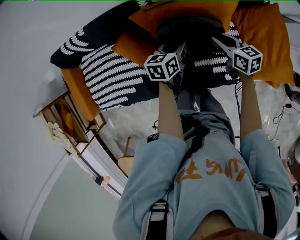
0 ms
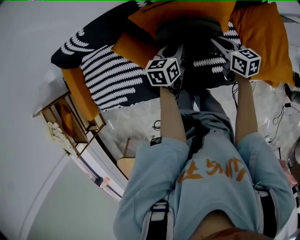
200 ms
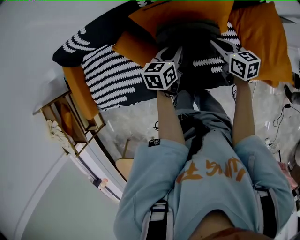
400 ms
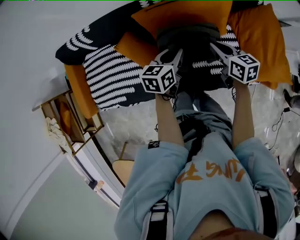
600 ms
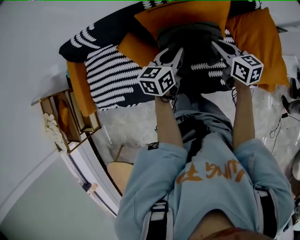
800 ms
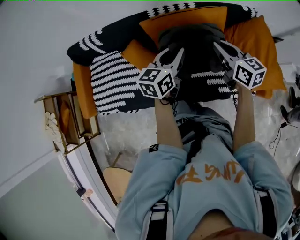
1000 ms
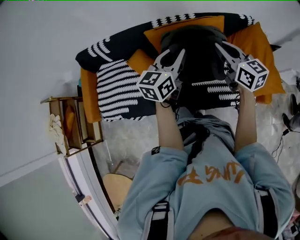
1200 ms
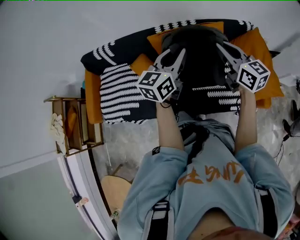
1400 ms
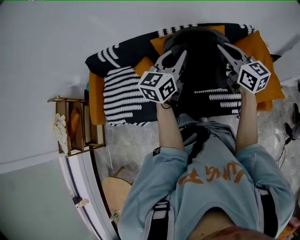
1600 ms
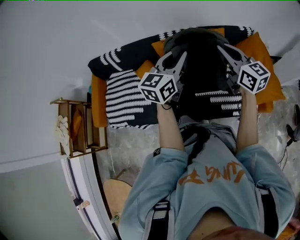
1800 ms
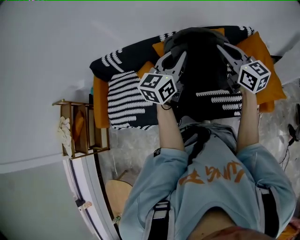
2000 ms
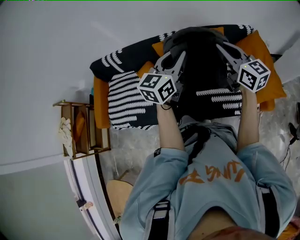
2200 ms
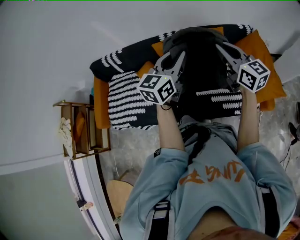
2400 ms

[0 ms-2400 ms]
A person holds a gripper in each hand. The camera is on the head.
0 ms to 1200 ms: Both grippers move upward and backward, about 30 cm. The left gripper rotates about 30 degrees, while the right gripper swivels roughly 30 degrees.
1200 ms to 2400 ms: Both grippers move upward, approximately 5 cm.

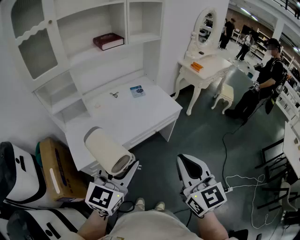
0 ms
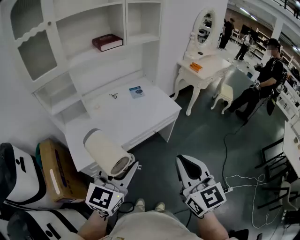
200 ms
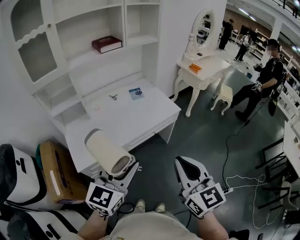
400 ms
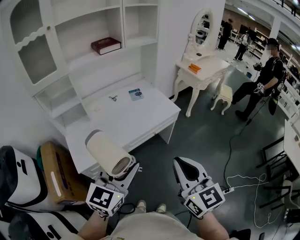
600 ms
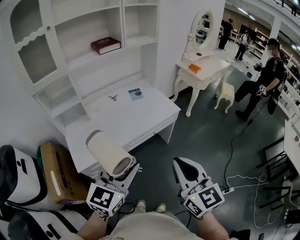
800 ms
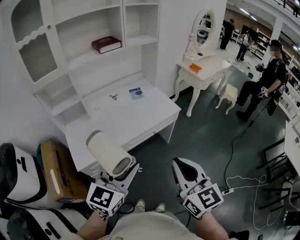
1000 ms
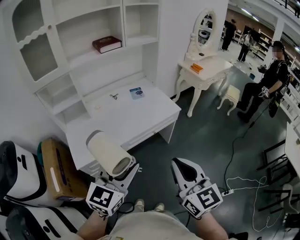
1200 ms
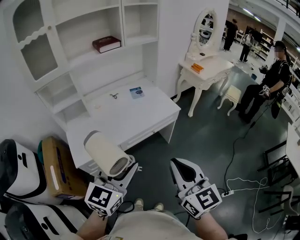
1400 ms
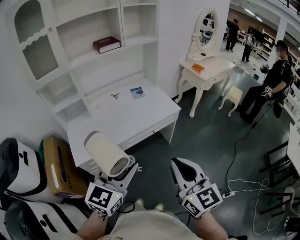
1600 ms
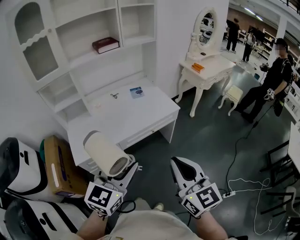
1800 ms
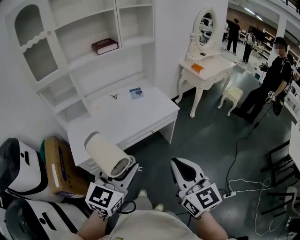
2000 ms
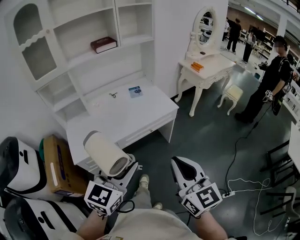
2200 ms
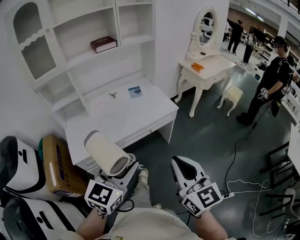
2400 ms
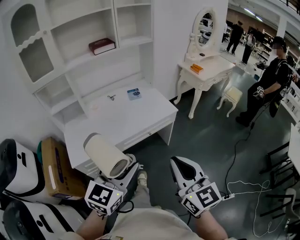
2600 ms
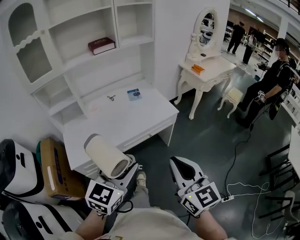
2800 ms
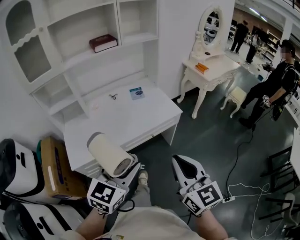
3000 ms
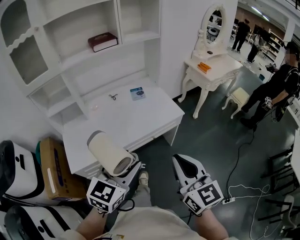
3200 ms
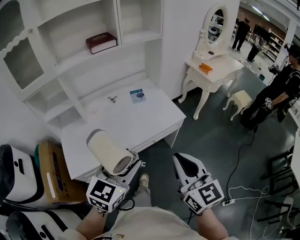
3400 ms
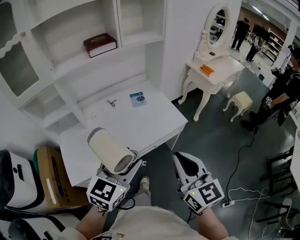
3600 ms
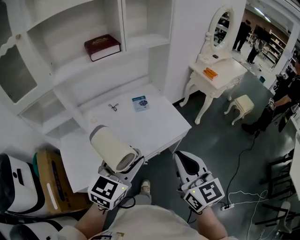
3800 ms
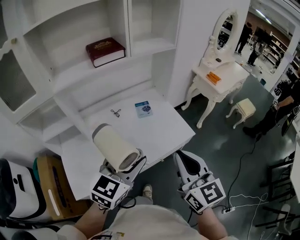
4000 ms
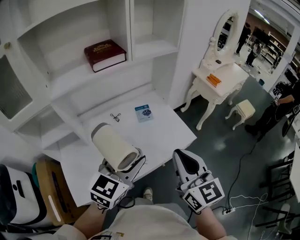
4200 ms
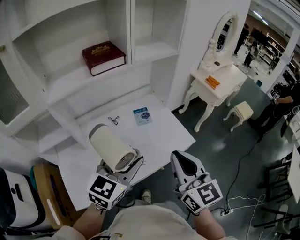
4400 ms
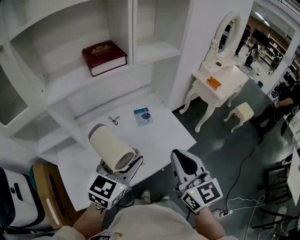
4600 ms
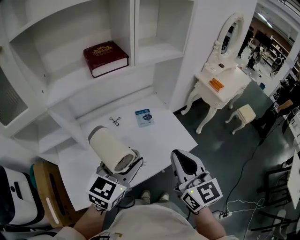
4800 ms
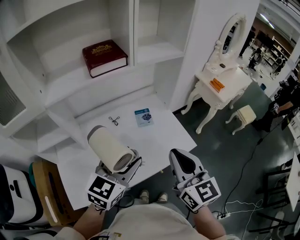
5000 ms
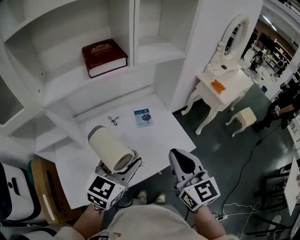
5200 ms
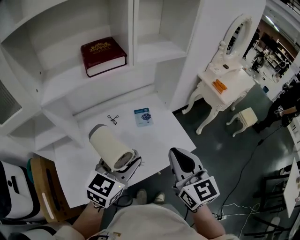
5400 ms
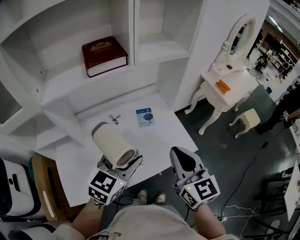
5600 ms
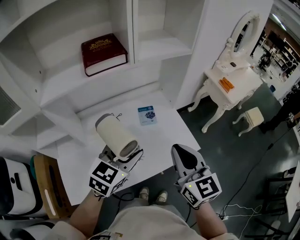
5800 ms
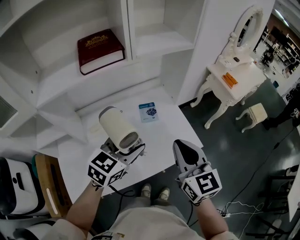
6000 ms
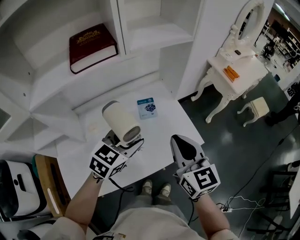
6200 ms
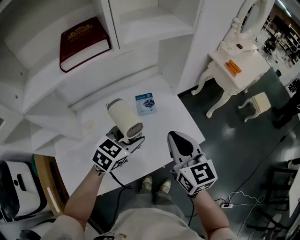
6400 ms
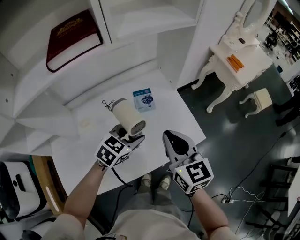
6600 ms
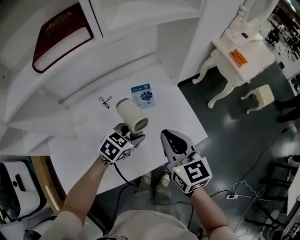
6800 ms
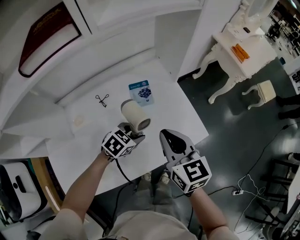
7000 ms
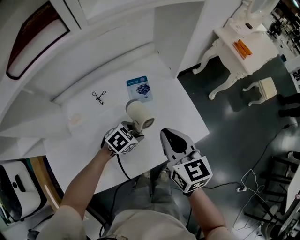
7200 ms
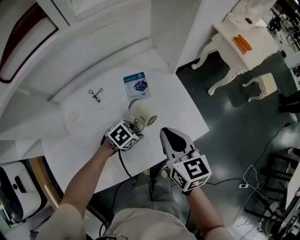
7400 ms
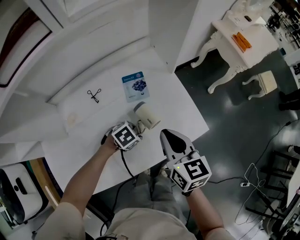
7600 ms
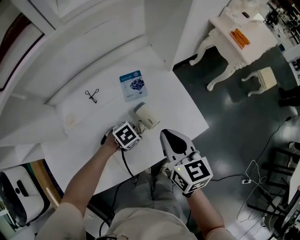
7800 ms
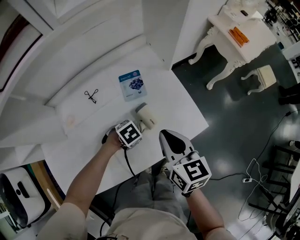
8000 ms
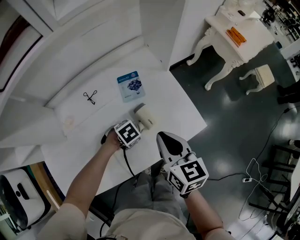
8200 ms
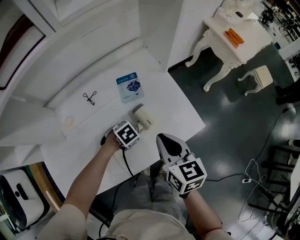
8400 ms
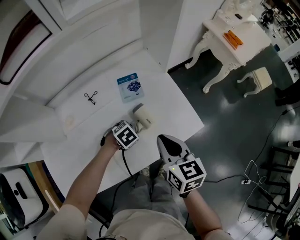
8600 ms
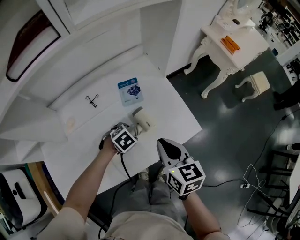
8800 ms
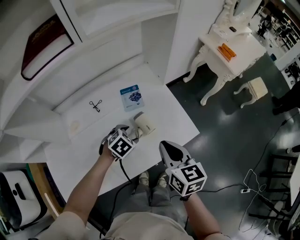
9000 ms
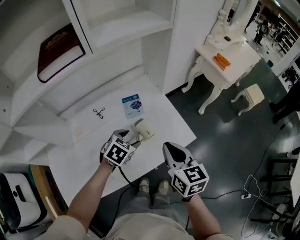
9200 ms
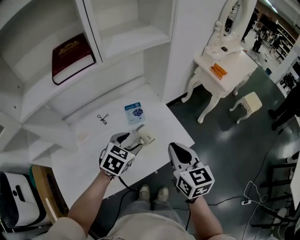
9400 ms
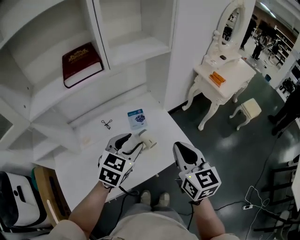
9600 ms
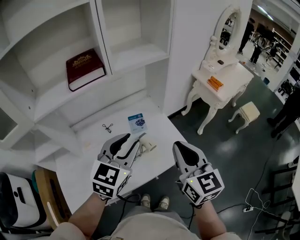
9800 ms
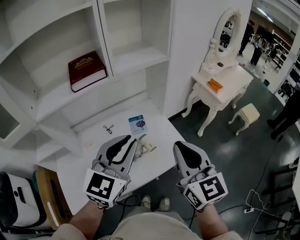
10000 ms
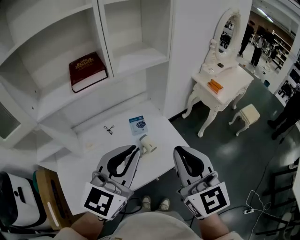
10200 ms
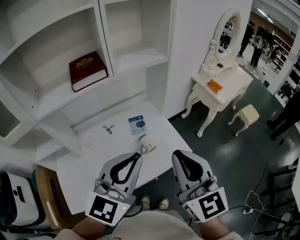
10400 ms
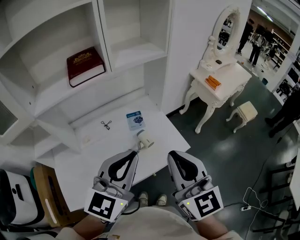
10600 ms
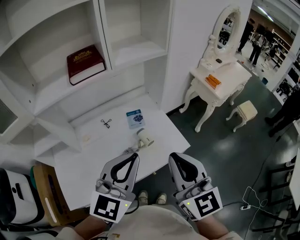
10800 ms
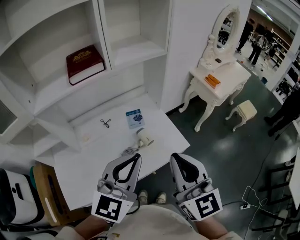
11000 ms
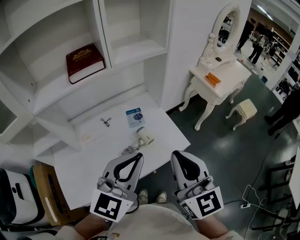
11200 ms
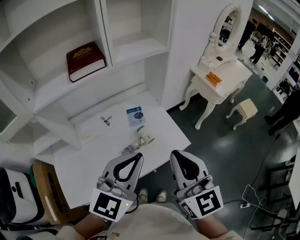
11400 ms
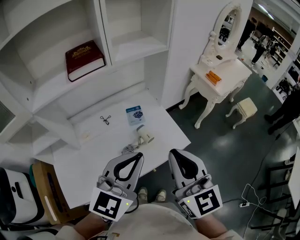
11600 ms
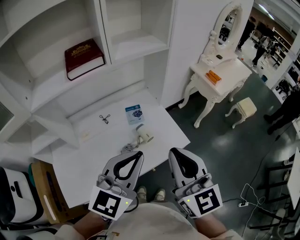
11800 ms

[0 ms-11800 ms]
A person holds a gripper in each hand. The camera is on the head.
0 ms to 1400 ms: The left gripper ends up some 5 cm from where it was.
1400 ms to 3000 ms: Both grippers move forward, approximately 5 cm.
3000 ms to 4400 ms: The right gripper is displaced forward and to the left by roughly 35 cm, while the left gripper shifts approximately 30 cm forward.
4400 ms to 6000 ms: The right gripper travels forward by some 15 cm, while the left gripper goes approximately 15 cm forward and downward.
6000 ms to 7400 ms: The left gripper travels downward by approximately 35 cm, and tips its fingers downward by approximately 40 degrees; the right gripper moves downward and forward, about 20 cm, and rotates roughly 20 degrees.
7400 ms to 8800 ms: The right gripper ends up roughly 5 cm from where it was.
8800 ms to 10400 ms: The right gripper shifts roughly 35 cm upward and backward, and changes its angle by roughly 40 degrees; the left gripper is displaced upward by approximately 50 cm, tilts its fingers some 70 degrees upward, and closes.
10400 ms to 11800 ms: The grippers move only a little.

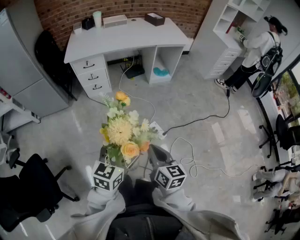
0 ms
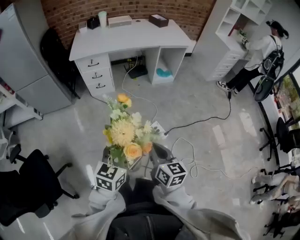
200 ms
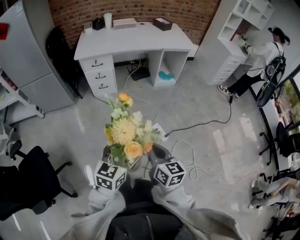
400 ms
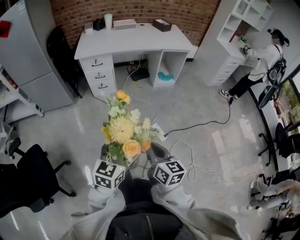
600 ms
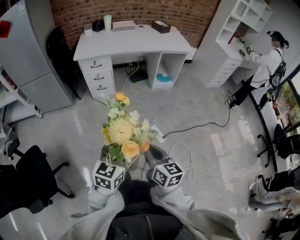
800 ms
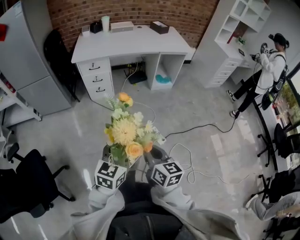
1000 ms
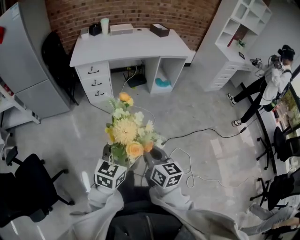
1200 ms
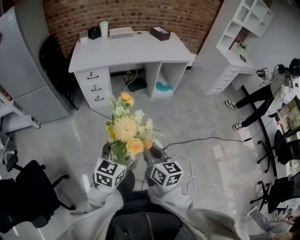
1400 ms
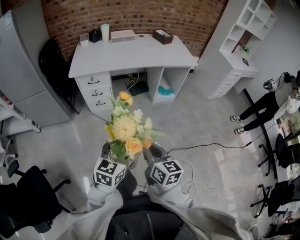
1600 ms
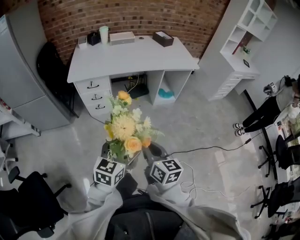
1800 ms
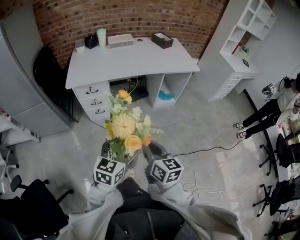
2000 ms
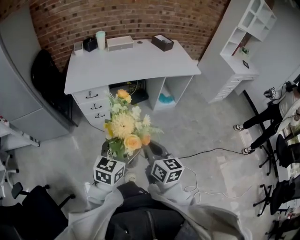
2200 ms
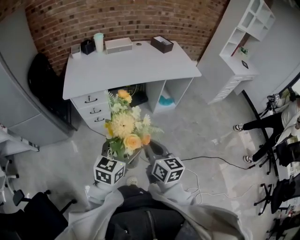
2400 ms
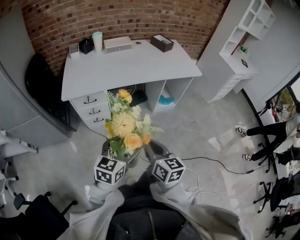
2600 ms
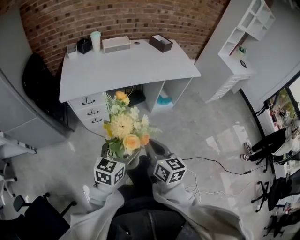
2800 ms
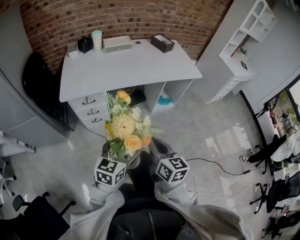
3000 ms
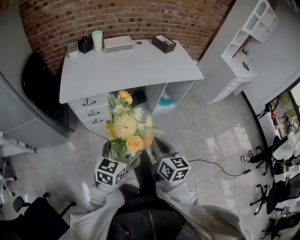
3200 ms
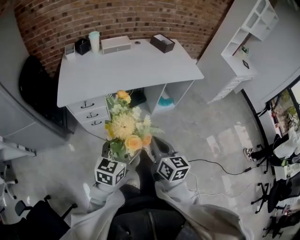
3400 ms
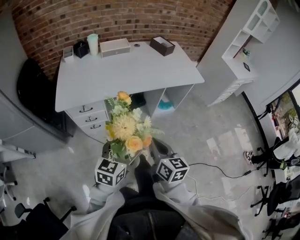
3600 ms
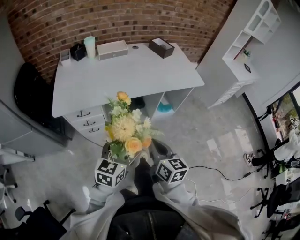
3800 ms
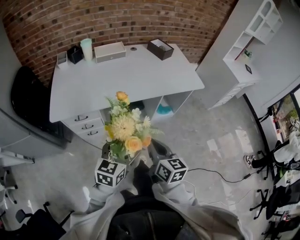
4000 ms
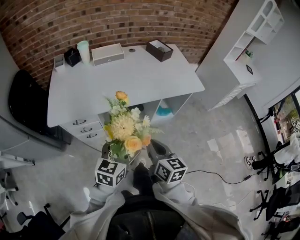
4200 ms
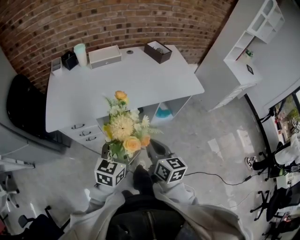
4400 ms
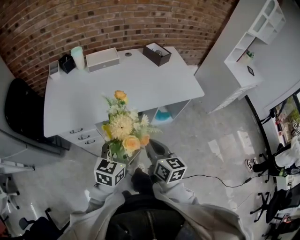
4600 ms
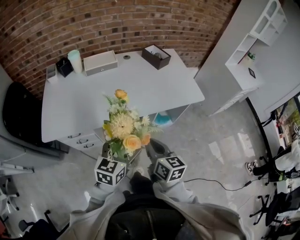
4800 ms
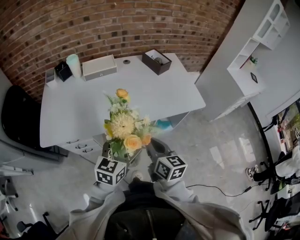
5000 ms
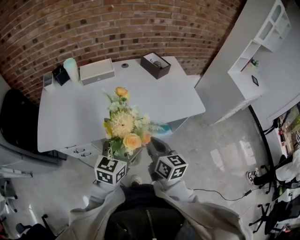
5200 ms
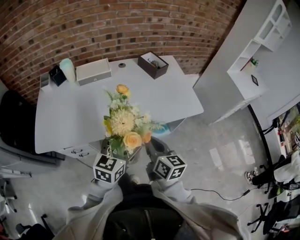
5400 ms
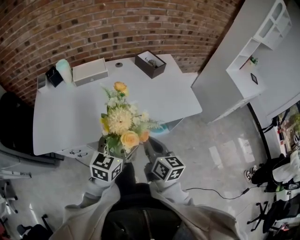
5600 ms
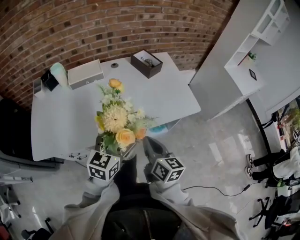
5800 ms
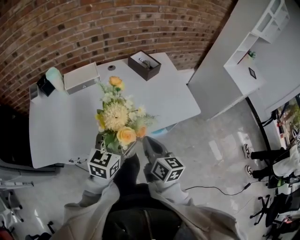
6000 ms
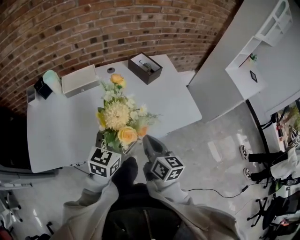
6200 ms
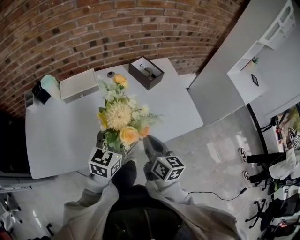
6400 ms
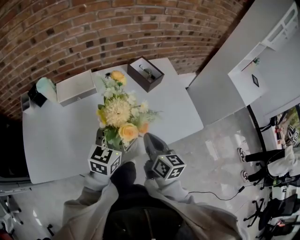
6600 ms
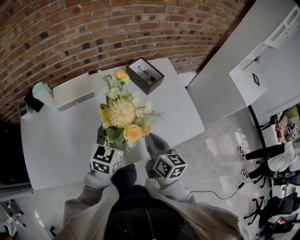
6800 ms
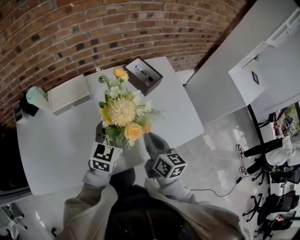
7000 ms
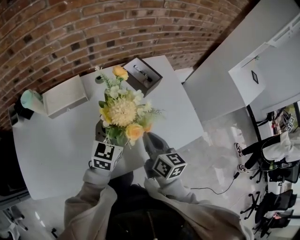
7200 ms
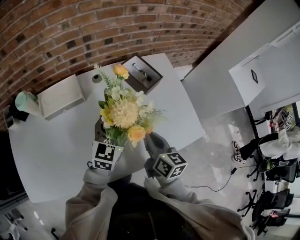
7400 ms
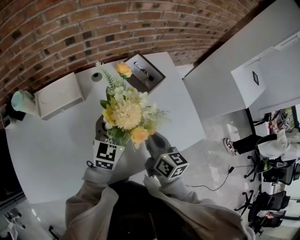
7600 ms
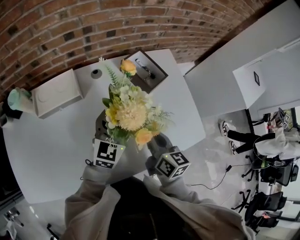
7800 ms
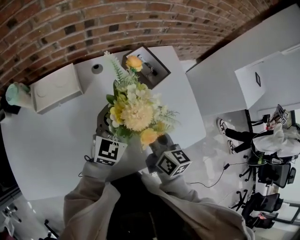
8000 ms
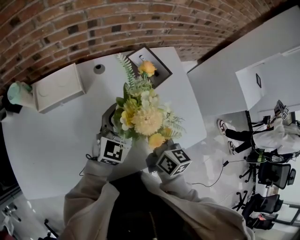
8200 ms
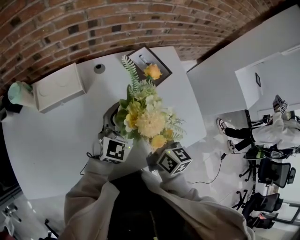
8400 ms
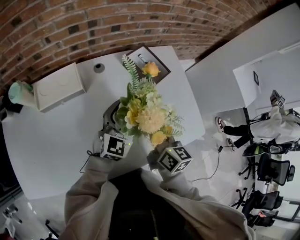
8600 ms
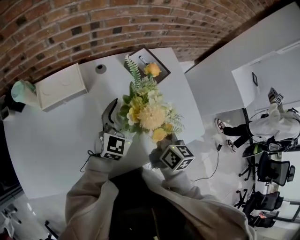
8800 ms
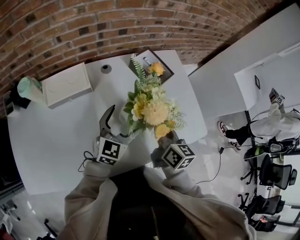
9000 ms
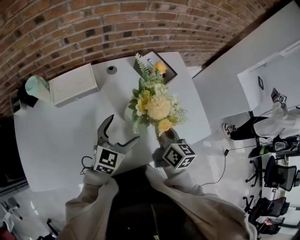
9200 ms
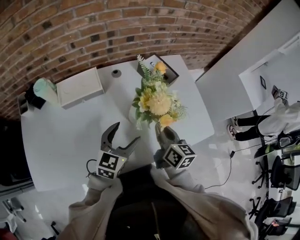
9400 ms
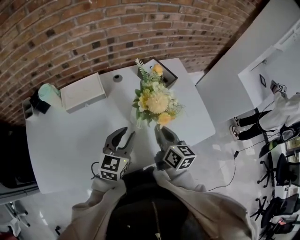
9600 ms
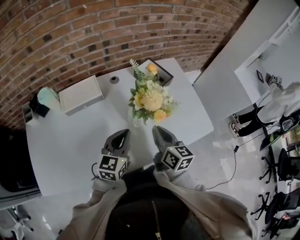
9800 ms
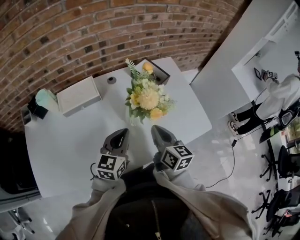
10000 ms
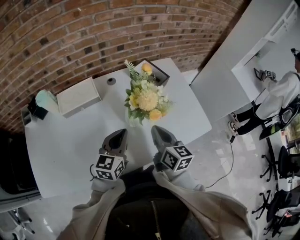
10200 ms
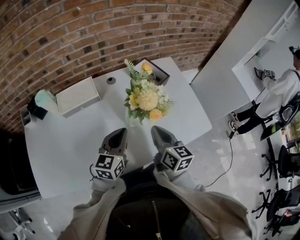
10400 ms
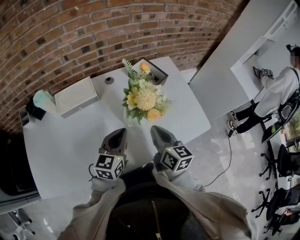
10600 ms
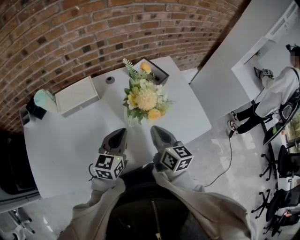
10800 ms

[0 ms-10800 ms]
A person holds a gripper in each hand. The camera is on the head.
0 ms to 1600 ms: The right gripper travels forward and to the left by approximately 15 cm. Meanwhile the left gripper goes some 15 cm forward.
1600 ms to 3000 ms: The left gripper is displaced forward and to the left by roughly 25 cm, while the right gripper moves forward, about 25 cm.
3000 ms to 4600 ms: The grippers both shift forward by about 30 cm.
4600 ms to 6200 ms: Both grippers travel together forward, some 30 cm.
6200 ms to 7800 ms: Both grippers travel together forward, about 25 cm.
7800 ms to 9200 ms: The left gripper moves backward, roughly 10 cm.
9200 ms to 10800 ms: The right gripper moves backward, roughly 5 cm; the left gripper changes place by roughly 5 cm, and closes up.
